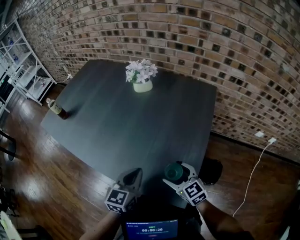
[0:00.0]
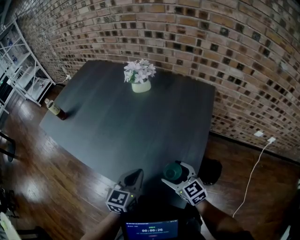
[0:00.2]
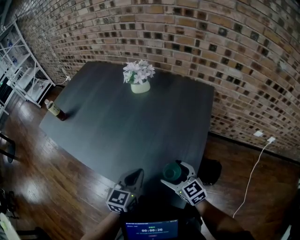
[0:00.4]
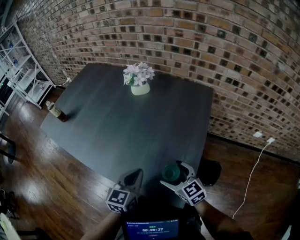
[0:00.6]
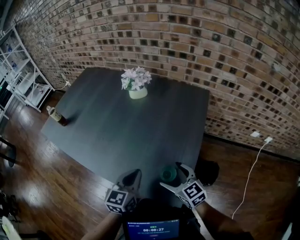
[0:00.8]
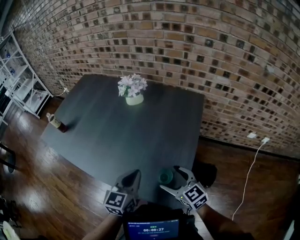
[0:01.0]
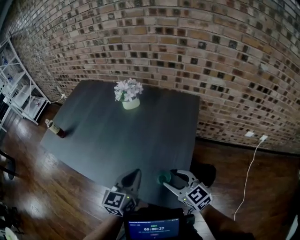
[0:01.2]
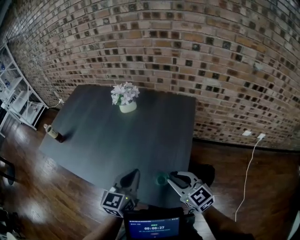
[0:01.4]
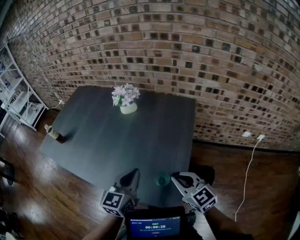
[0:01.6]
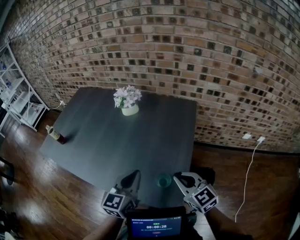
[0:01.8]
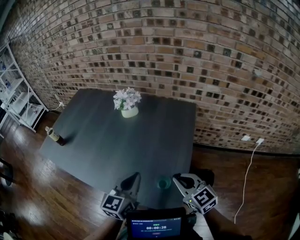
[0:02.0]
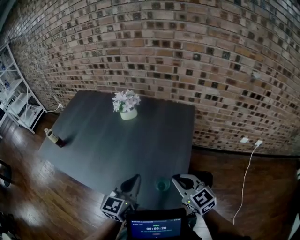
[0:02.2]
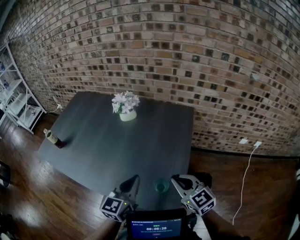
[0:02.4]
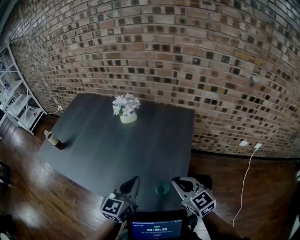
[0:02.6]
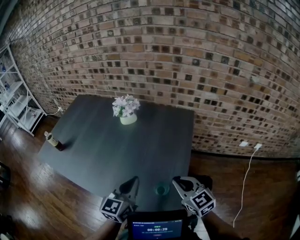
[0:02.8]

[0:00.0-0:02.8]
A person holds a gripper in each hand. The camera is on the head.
0:00.0 to 0:01.4: Both grippers move upward, about 10 cm. The right gripper closes.
0:01.4 to 0:02.8: The grippers move only a little.

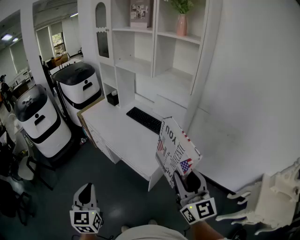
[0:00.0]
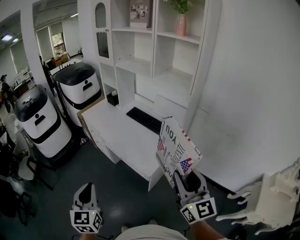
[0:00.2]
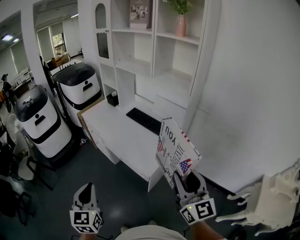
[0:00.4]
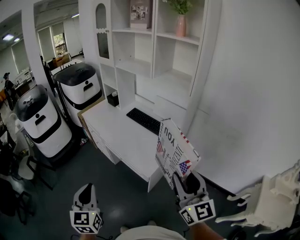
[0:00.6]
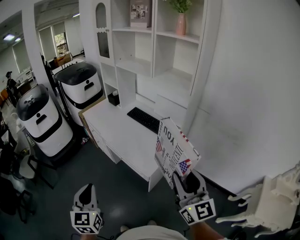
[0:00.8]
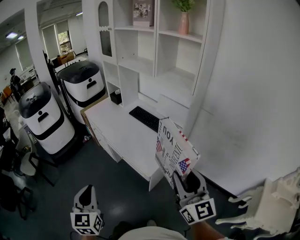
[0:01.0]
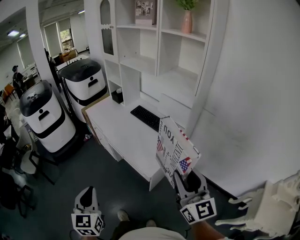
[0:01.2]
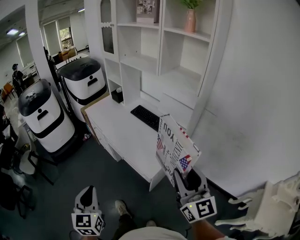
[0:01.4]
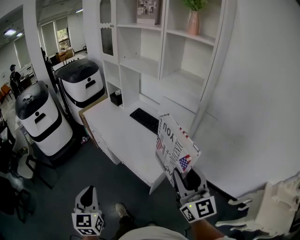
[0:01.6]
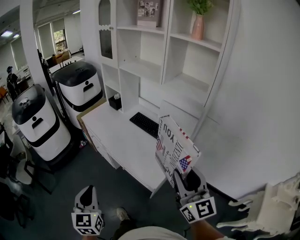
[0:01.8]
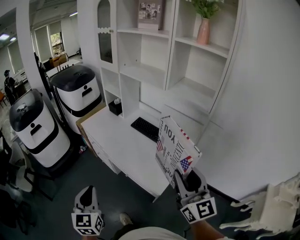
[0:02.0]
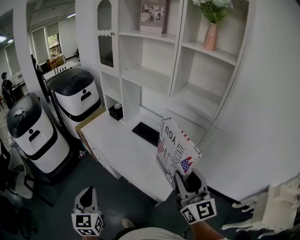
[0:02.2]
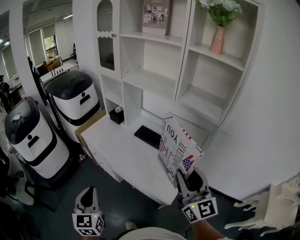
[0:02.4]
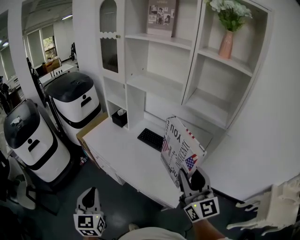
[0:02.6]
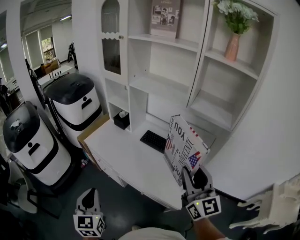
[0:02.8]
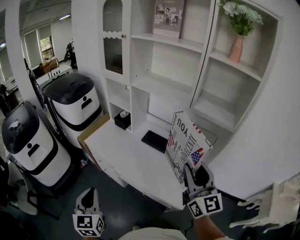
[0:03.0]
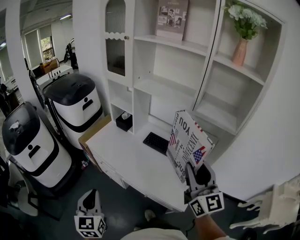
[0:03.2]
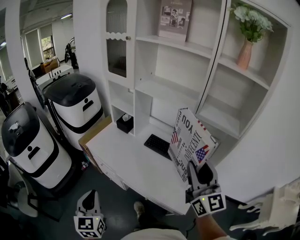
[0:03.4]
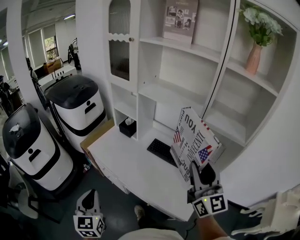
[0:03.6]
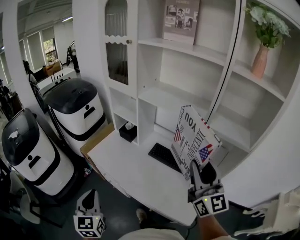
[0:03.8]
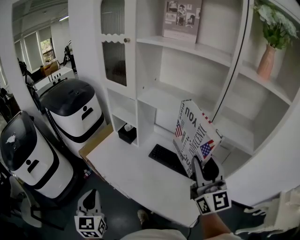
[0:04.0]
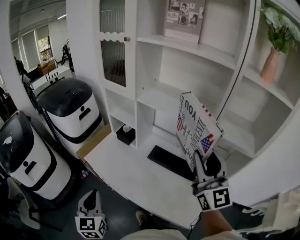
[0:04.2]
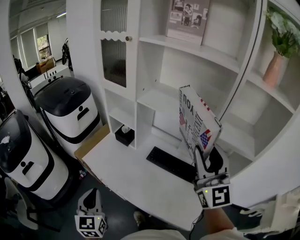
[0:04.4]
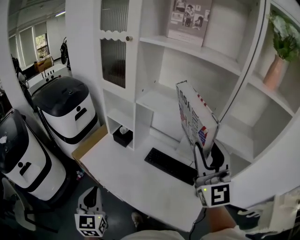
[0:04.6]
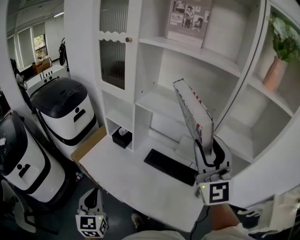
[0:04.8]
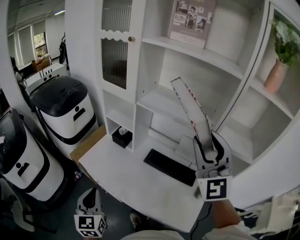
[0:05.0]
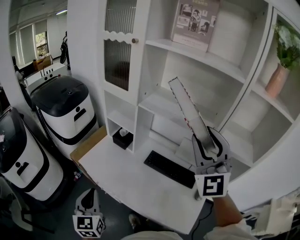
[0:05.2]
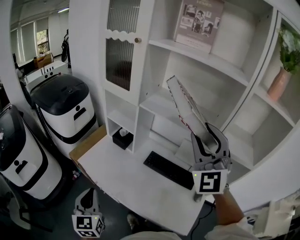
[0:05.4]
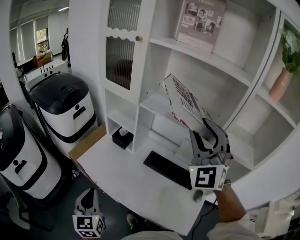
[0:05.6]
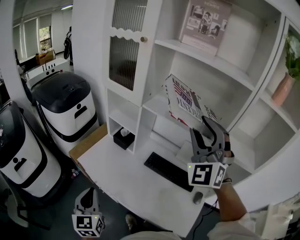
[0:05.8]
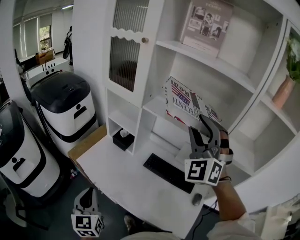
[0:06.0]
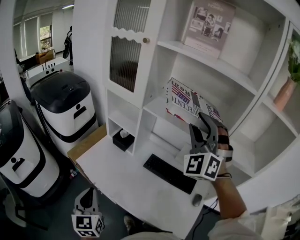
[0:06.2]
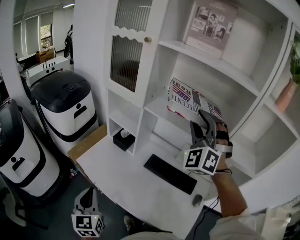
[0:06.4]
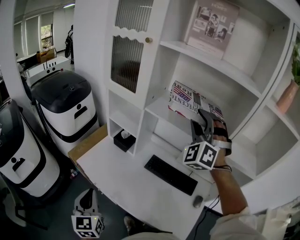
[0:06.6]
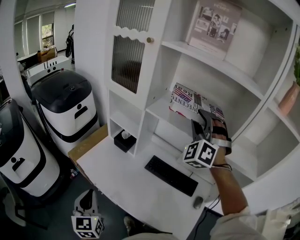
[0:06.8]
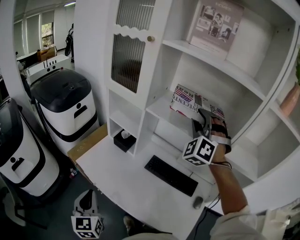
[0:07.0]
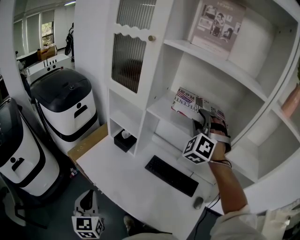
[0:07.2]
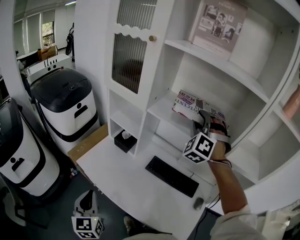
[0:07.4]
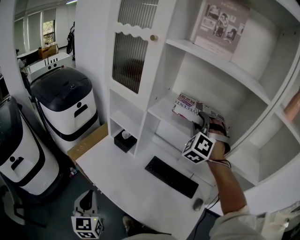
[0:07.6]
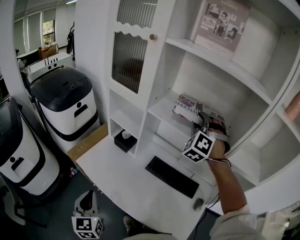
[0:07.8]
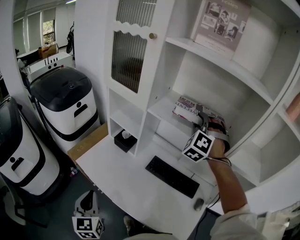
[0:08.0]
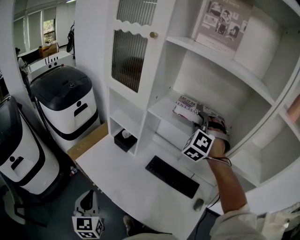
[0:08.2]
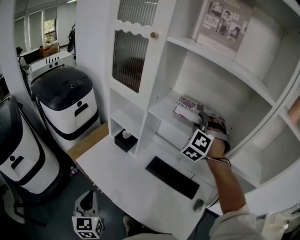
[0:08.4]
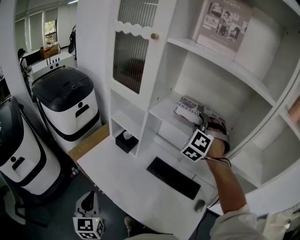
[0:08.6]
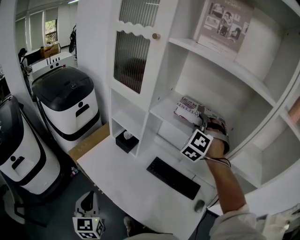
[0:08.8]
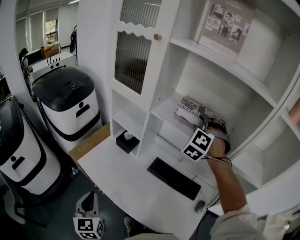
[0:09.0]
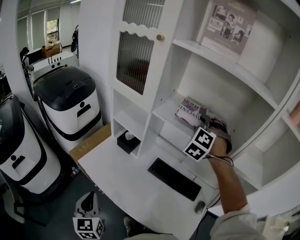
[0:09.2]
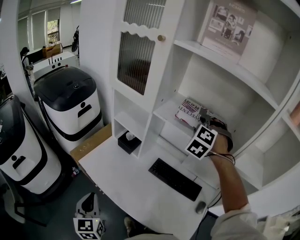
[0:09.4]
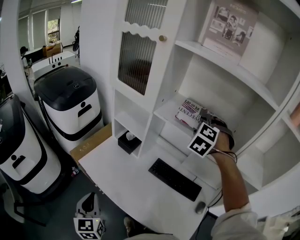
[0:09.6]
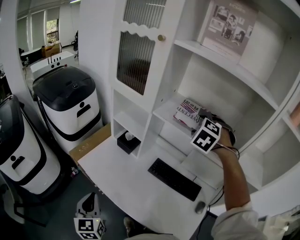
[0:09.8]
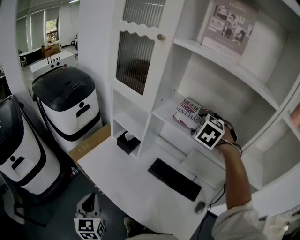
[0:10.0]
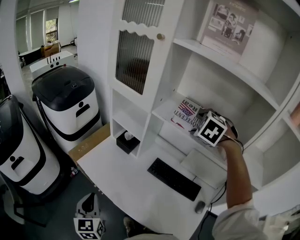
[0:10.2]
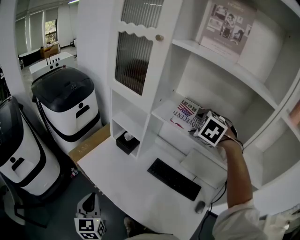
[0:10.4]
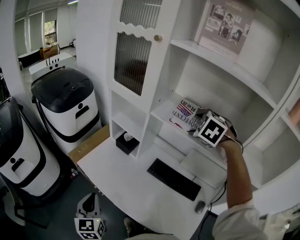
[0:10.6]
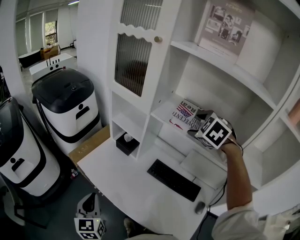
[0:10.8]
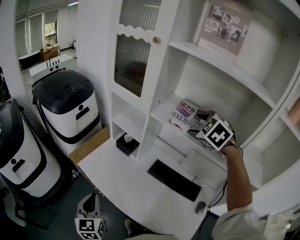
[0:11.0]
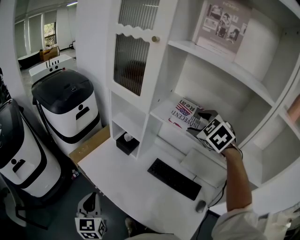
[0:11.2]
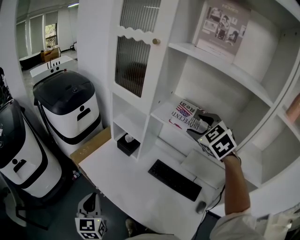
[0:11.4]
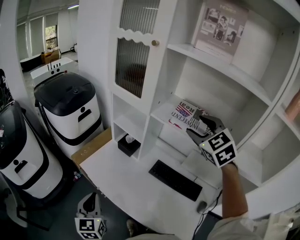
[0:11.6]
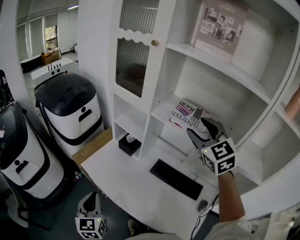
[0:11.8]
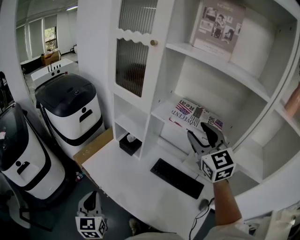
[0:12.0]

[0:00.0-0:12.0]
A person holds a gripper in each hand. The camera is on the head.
0:00.0 to 0:01.6: The right gripper is displaced forward by some 5 cm.
0:01.6 to 0:03.0: Both grippers travel together forward and to the left, some 30 cm.
0:03.0 to 0:04.4: Both grippers travel together forward, roughly 20 cm.
0:04.4 to 0:06.0: The left gripper changes place by roughly 5 cm. The right gripper shifts some 15 cm forward, and rotates around the line of its fingers by some 50 degrees, counterclockwise from behind.
0:06.0 to 0:07.6: The right gripper is displaced forward and downward by some 15 cm, and swivels about 30 degrees.
0:07.6 to 0:09.0: The grippers stay close to where they were, moving slightly.
0:09.0 to 0:10.4: The right gripper swivels about 30 degrees, and opens up.
0:10.4 to 0:12.0: The right gripper travels backward and upward by some 10 cm, and points its fingers roughly 50 degrees further upward.

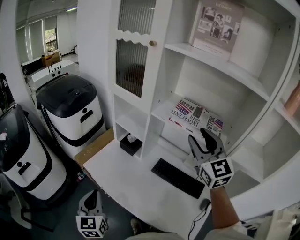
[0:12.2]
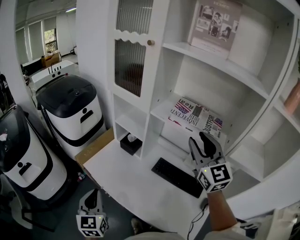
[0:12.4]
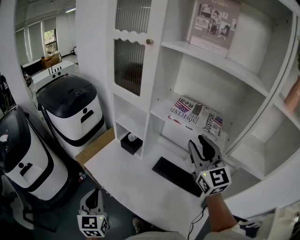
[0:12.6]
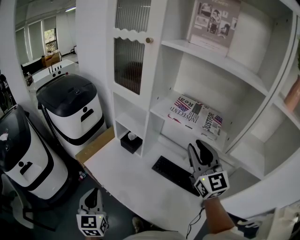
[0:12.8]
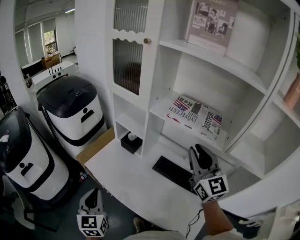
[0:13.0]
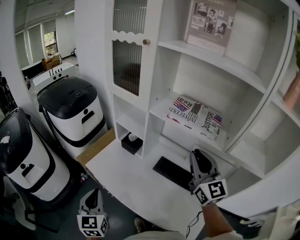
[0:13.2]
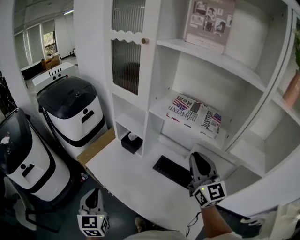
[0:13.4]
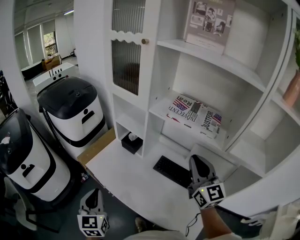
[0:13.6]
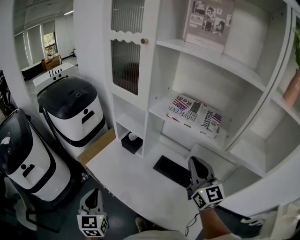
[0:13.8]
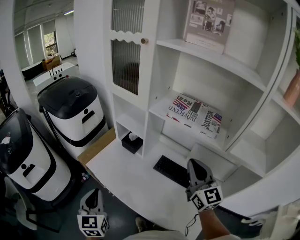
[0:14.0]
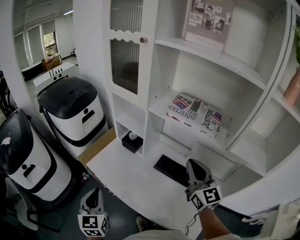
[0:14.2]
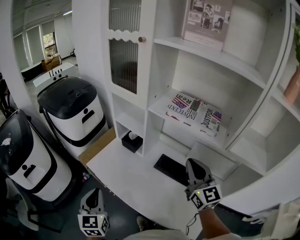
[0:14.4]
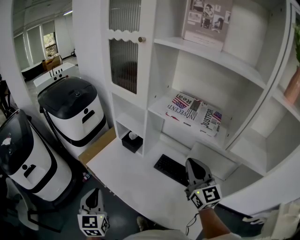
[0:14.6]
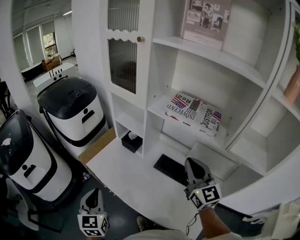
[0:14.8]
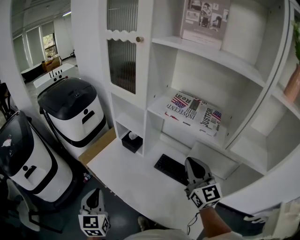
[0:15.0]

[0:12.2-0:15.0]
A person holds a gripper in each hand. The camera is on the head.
0:12.2 to 0:13.6: The right gripper travels downward and backward by about 10 cm, and closes its fingers.
0:13.6 to 0:15.0: The grippers make only small movements.

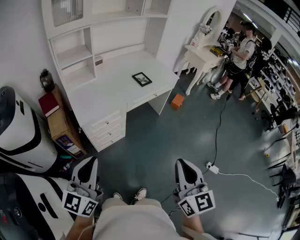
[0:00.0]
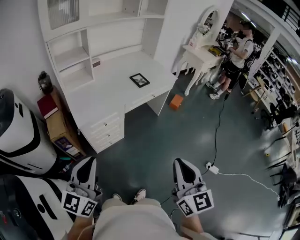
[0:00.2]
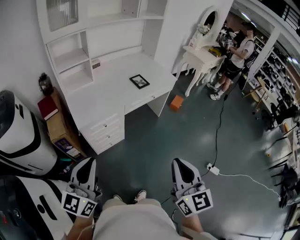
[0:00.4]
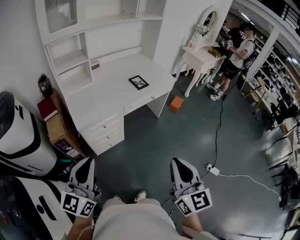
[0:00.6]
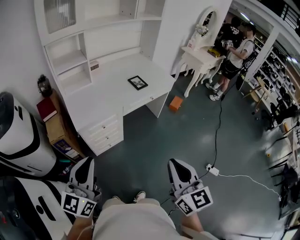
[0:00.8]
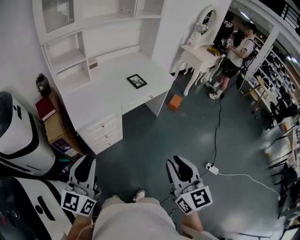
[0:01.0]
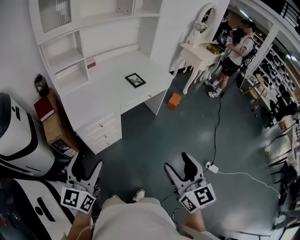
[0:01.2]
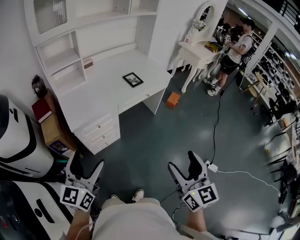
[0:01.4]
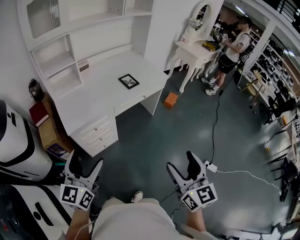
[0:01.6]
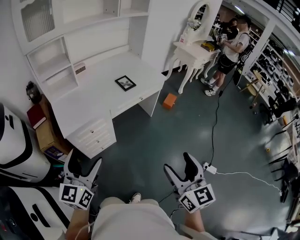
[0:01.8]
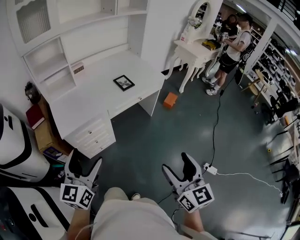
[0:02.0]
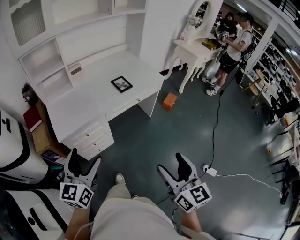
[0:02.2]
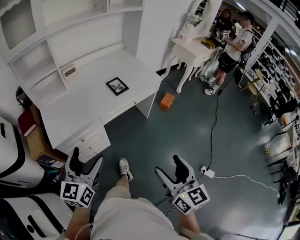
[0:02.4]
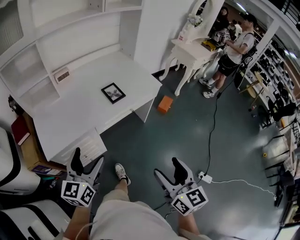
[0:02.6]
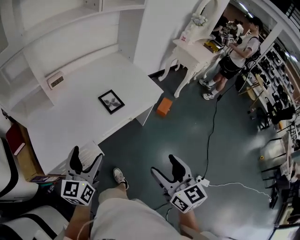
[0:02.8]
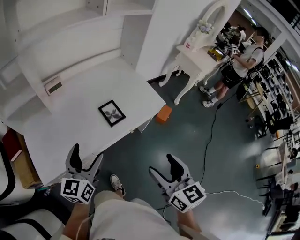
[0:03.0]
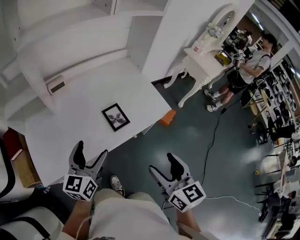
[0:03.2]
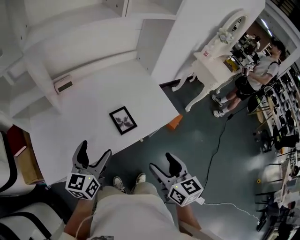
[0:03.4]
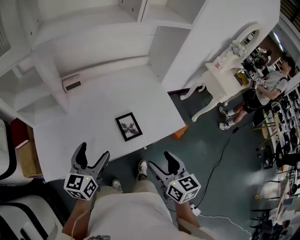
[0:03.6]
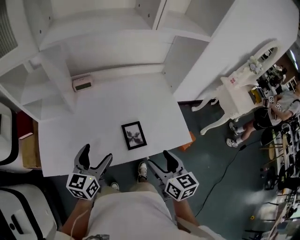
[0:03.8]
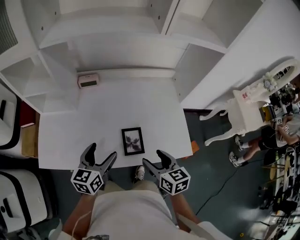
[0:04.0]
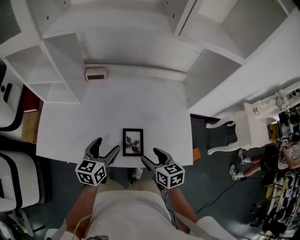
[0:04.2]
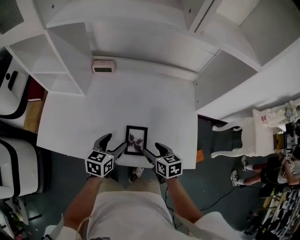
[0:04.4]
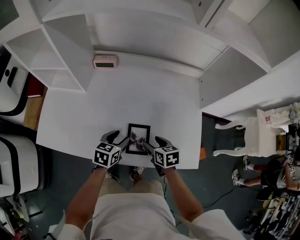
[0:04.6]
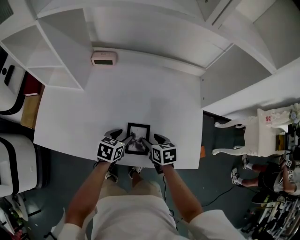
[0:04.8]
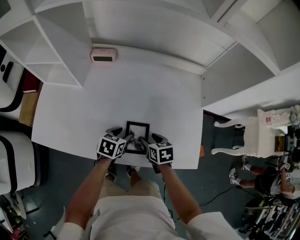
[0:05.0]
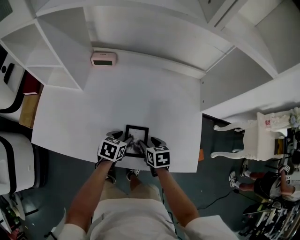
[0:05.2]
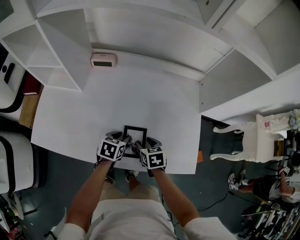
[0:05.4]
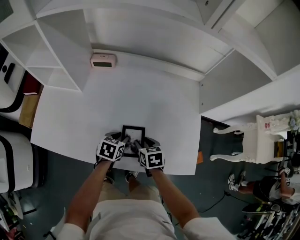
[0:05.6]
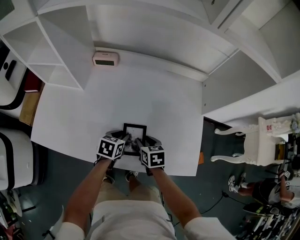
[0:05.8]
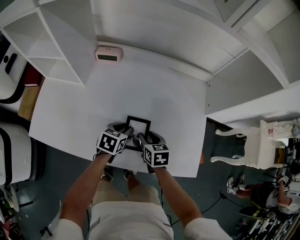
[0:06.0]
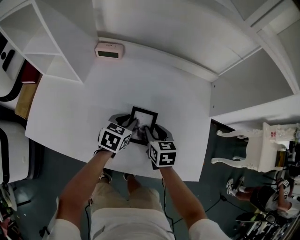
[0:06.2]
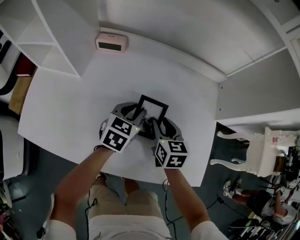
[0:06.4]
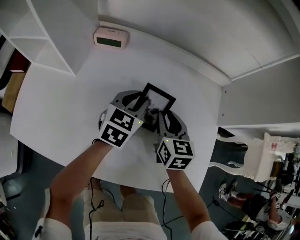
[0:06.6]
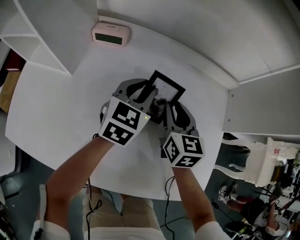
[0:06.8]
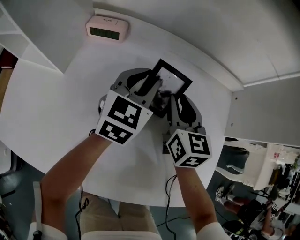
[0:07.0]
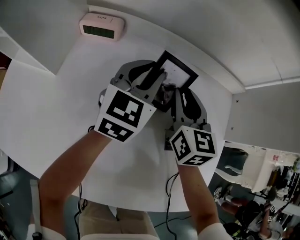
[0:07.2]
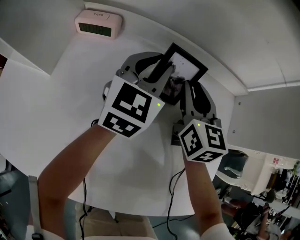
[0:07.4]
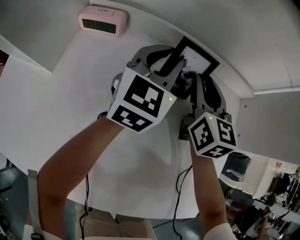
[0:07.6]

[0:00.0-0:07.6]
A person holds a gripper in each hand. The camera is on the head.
0:00.0 to 0:01.6: The left gripper goes about 10 cm forward and to the right, and opens, while the right gripper is displaced to the right by roughly 10 cm, and opens.
0:01.6 to 0:03.0: The grippers both shift forward by about 40 cm.
0:03.0 to 0:04.6: The right gripper shifts by about 50 cm, and points its fingers roughly 30 degrees further downward. The left gripper changes place by some 35 cm, points its fingers about 30 degrees further downward, and closes.
0:04.6 to 0:06.0: The left gripper shifts about 5 cm forward. Meanwhile the right gripper changes place by about 5 cm.
0:06.0 to 0:07.6: Both grippers travel together forward, roughly 30 cm. The right gripper angles its fingers upward, by about 30 degrees; the left gripper angles its fingers upward, by approximately 40 degrees.
